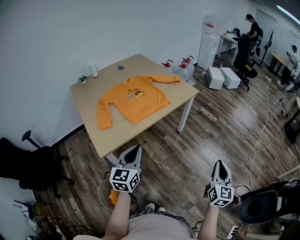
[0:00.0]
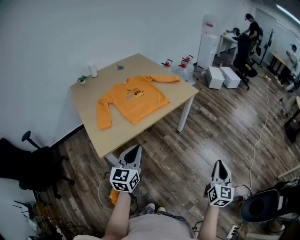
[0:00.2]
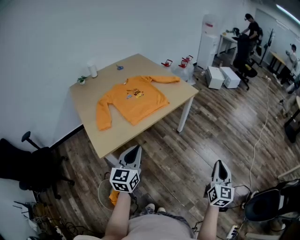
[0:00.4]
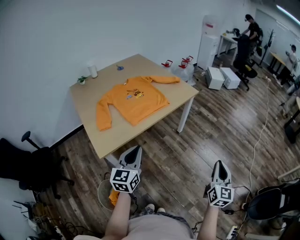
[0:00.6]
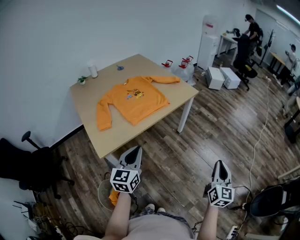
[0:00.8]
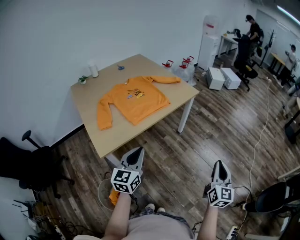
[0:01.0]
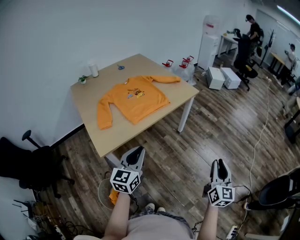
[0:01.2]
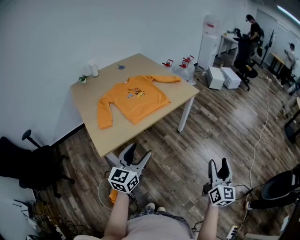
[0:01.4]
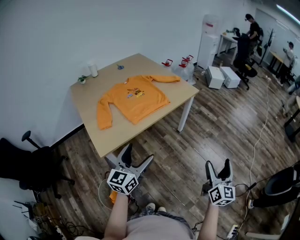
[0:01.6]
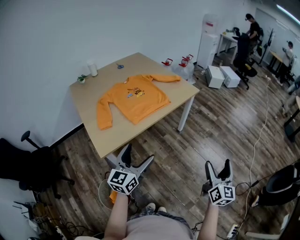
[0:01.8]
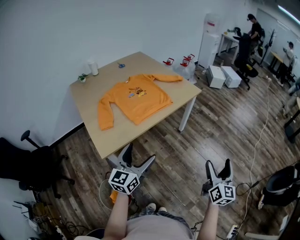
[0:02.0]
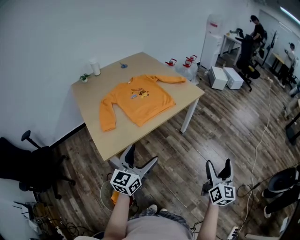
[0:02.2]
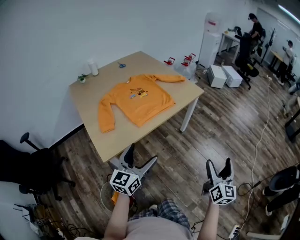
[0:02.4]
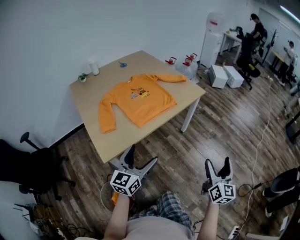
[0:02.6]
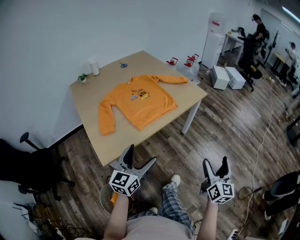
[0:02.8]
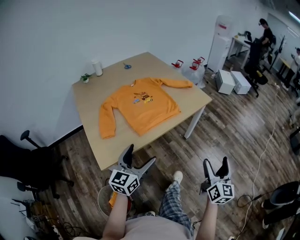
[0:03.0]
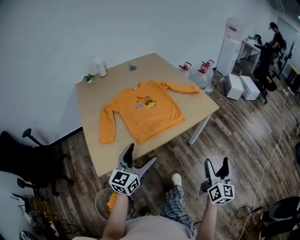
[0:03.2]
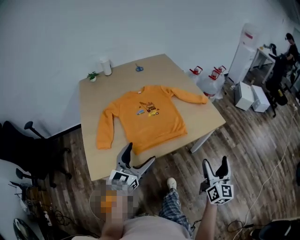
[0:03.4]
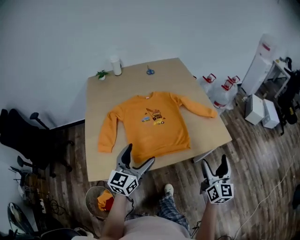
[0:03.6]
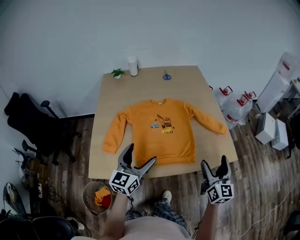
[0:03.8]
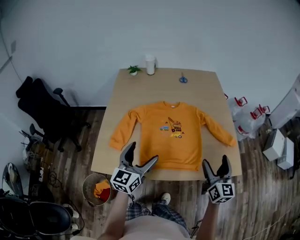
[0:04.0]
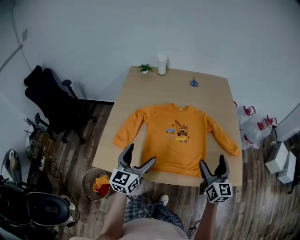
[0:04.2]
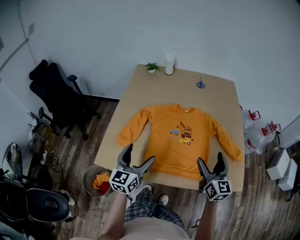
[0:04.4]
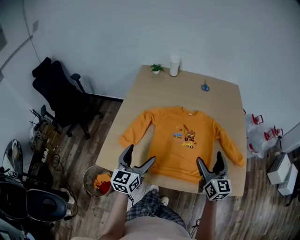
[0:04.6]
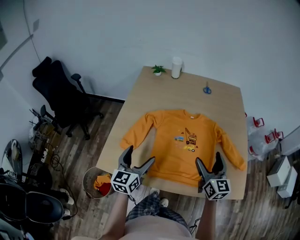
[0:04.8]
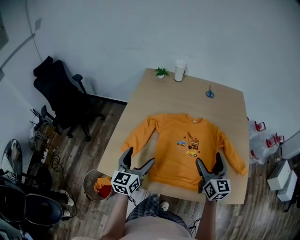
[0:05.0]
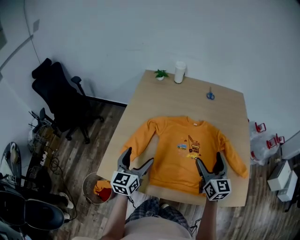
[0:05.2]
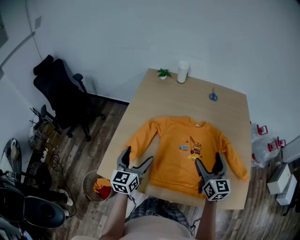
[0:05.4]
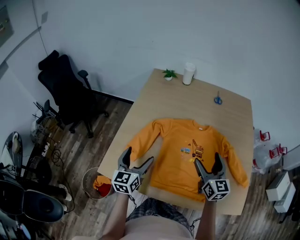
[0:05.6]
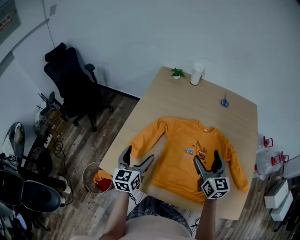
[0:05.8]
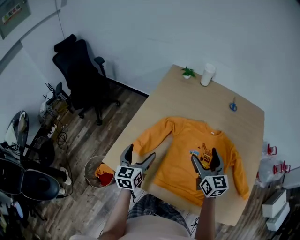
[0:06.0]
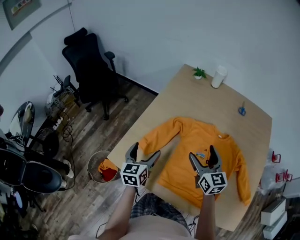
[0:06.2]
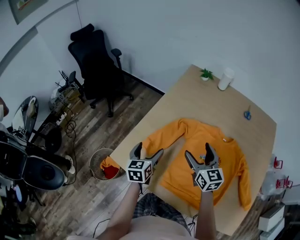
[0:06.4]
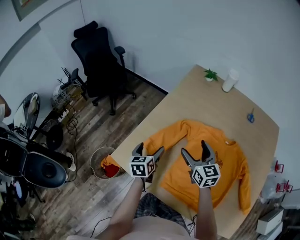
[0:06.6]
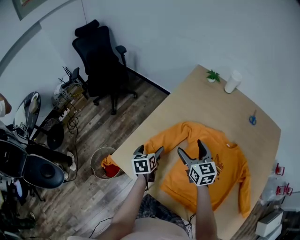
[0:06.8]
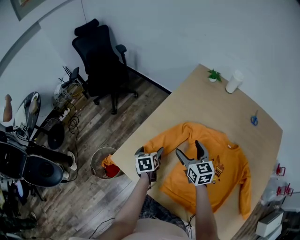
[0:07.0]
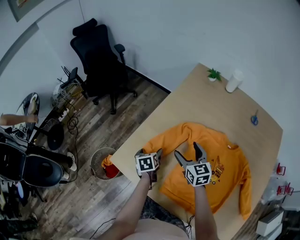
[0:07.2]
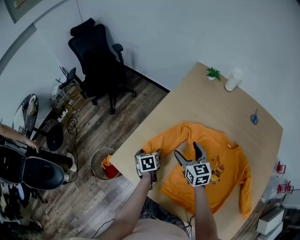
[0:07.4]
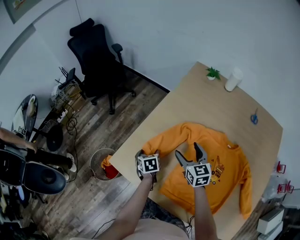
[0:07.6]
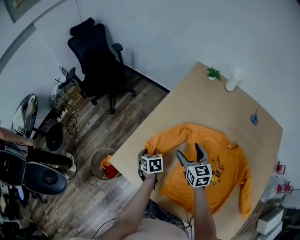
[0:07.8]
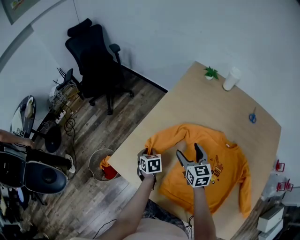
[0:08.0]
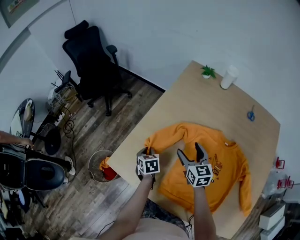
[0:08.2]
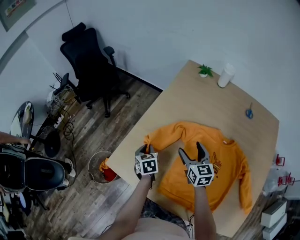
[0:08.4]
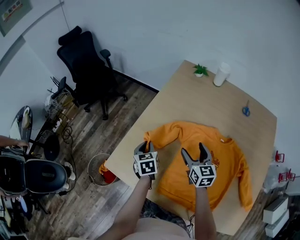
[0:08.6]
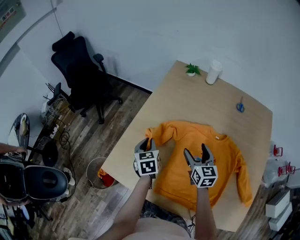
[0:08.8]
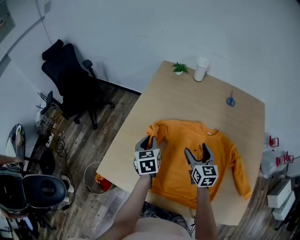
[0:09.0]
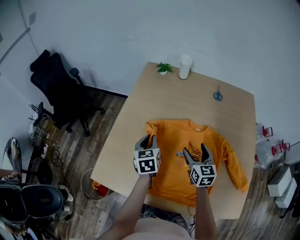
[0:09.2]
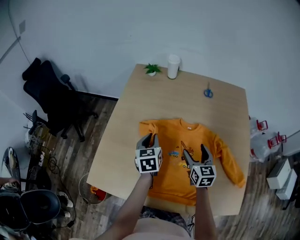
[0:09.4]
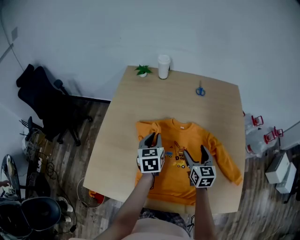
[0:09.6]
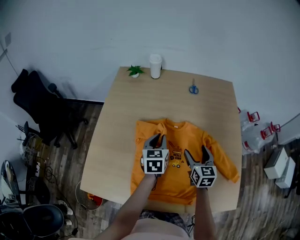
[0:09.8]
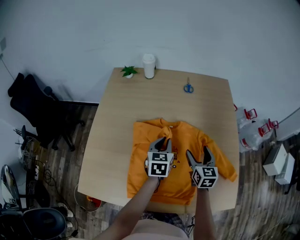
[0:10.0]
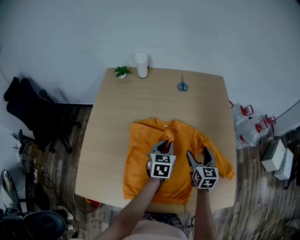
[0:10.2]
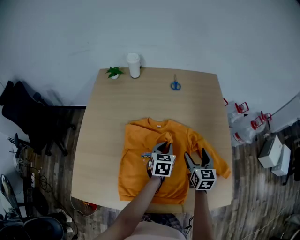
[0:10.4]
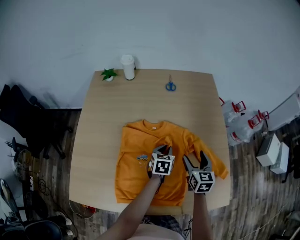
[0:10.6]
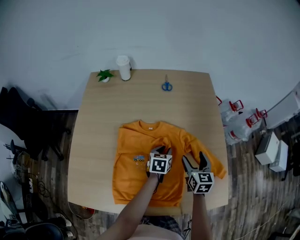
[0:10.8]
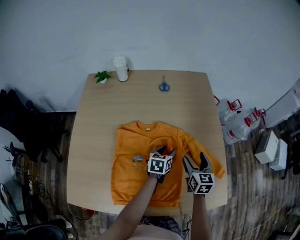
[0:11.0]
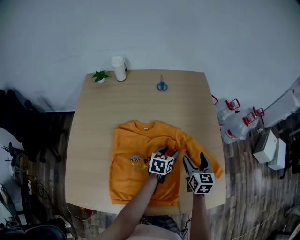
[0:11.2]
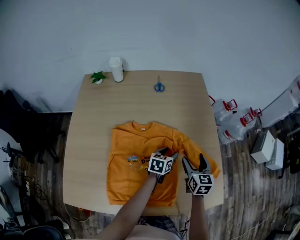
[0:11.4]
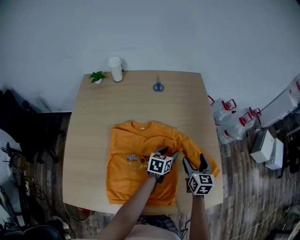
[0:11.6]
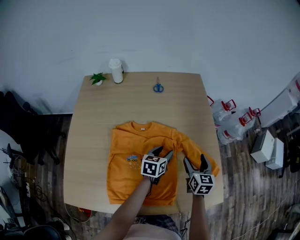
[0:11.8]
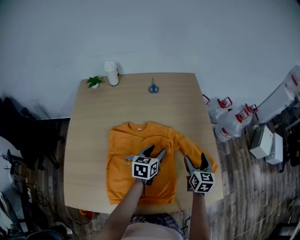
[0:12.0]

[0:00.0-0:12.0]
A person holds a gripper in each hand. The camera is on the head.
0:00.0 to 0:01.6: The right gripper opens; the left gripper opens its fingers.
0:01.6 to 0:03.0: Both grippers move forward and to the left, approximately 15 cm.
0:03.0 to 0:04.4: The right gripper shifts by some 50 cm, and turns by approximately 60 degrees; the left gripper moves about 25 cm, and rotates some 50 degrees.
0:04.4 to 0:06.0: The left gripper travels to the left, forward and downward by roughly 15 cm, and swivels roughly 20 degrees; the right gripper moves forward and to the left, approximately 20 cm, and swivels roughly 20 degrees.
0:06.0 to 0:07.6: The right gripper moves forward, to the left and downward, some 20 cm, and changes its angle by approximately 20 degrees. Meanwhile the left gripper heads downward, covering about 20 cm, and angles its fingers downward, by some 40 degrees.
0:07.6 to 0:09.0: The right gripper travels to the right and backward by roughly 15 cm, and rotates about 20 degrees; the left gripper heads upward and to the right, covering some 20 cm, changes its angle by roughly 30 degrees, and closes.
0:09.0 to 0:10.4: The right gripper changes place by about 25 cm, and rotates roughly 30 degrees. The left gripper changes place by roughly 35 cm, and swivels some 40 degrees.
0:10.4 to 0:12.0: The right gripper travels to the right by about 10 cm, while the left gripper shifts some 5 cm to the right, and opens.

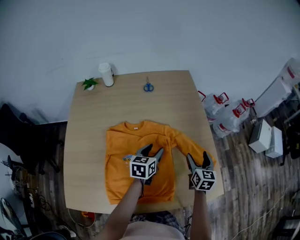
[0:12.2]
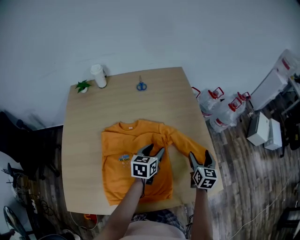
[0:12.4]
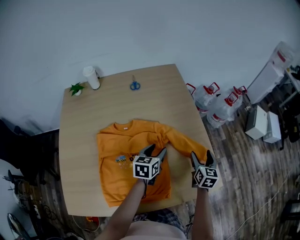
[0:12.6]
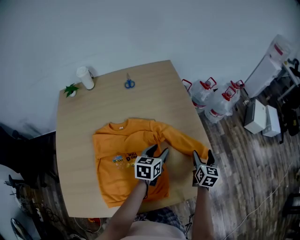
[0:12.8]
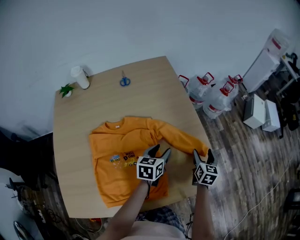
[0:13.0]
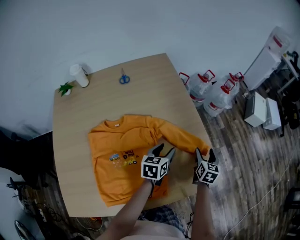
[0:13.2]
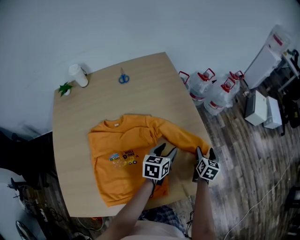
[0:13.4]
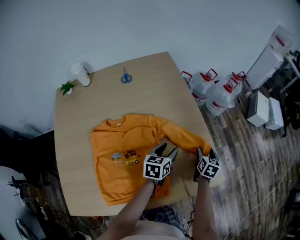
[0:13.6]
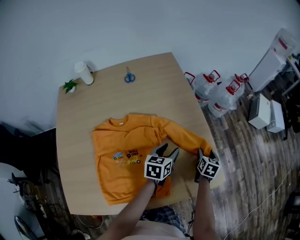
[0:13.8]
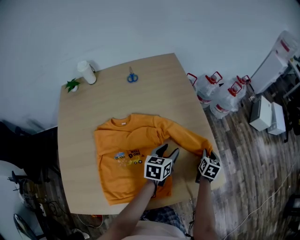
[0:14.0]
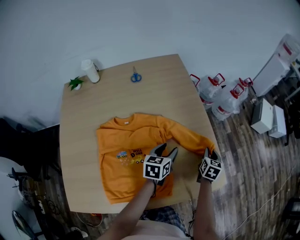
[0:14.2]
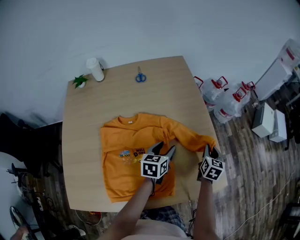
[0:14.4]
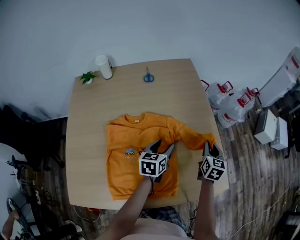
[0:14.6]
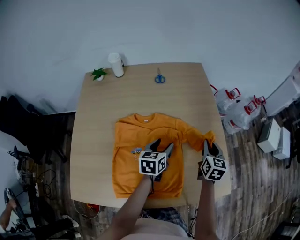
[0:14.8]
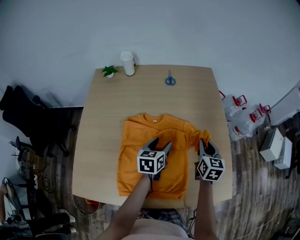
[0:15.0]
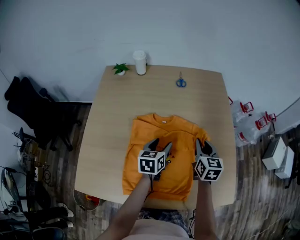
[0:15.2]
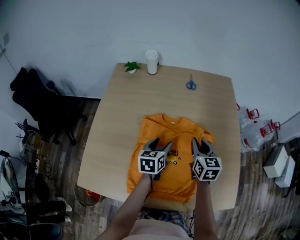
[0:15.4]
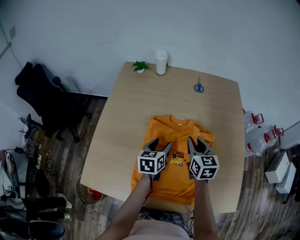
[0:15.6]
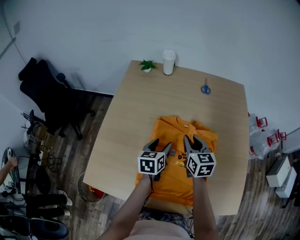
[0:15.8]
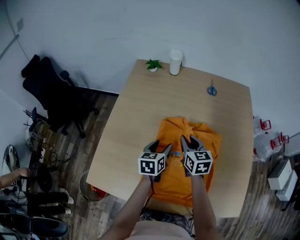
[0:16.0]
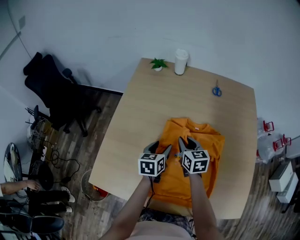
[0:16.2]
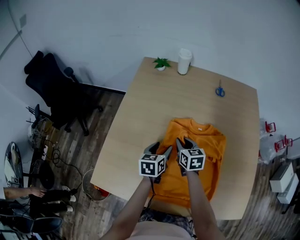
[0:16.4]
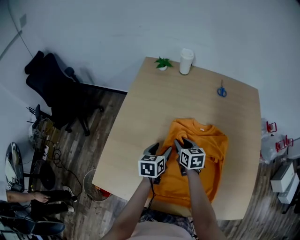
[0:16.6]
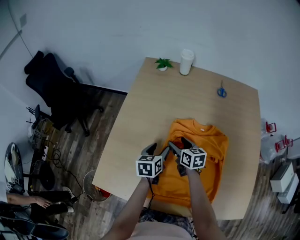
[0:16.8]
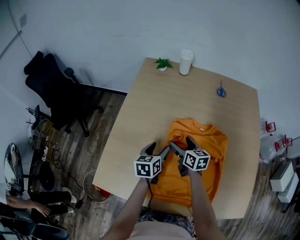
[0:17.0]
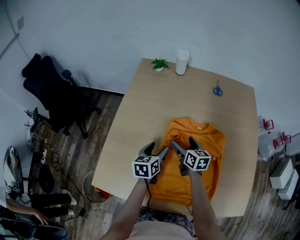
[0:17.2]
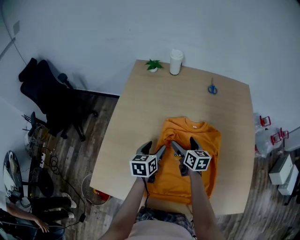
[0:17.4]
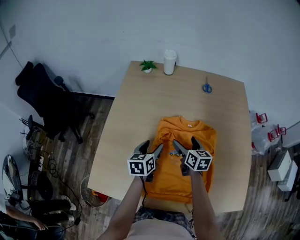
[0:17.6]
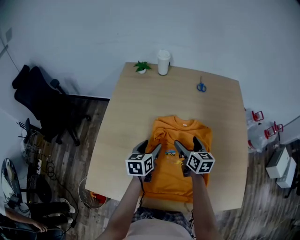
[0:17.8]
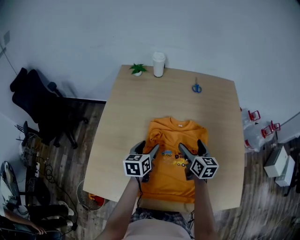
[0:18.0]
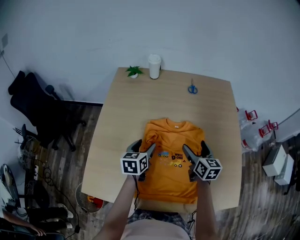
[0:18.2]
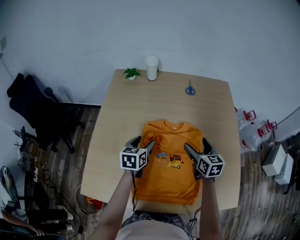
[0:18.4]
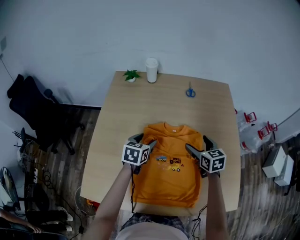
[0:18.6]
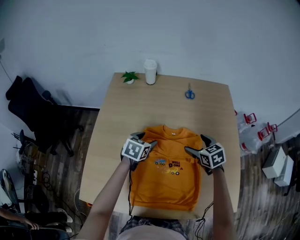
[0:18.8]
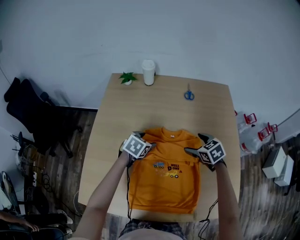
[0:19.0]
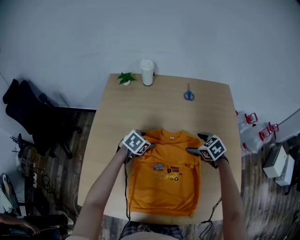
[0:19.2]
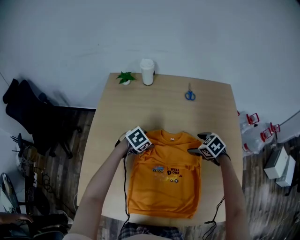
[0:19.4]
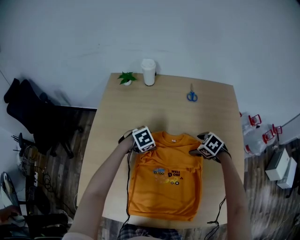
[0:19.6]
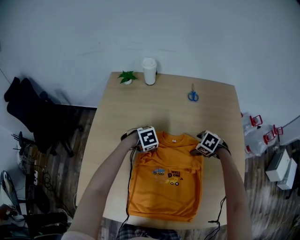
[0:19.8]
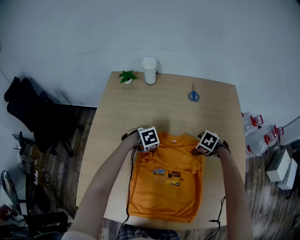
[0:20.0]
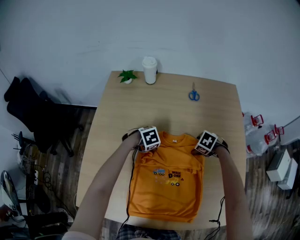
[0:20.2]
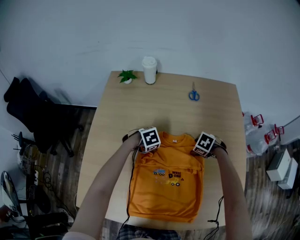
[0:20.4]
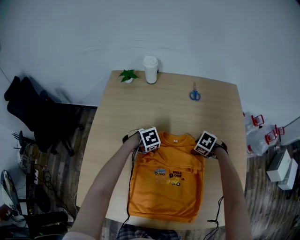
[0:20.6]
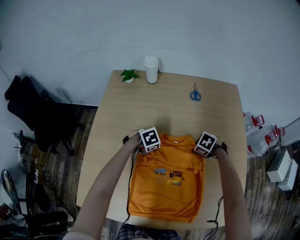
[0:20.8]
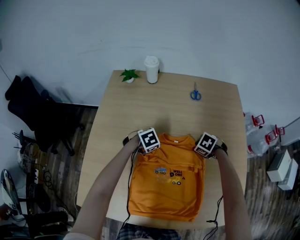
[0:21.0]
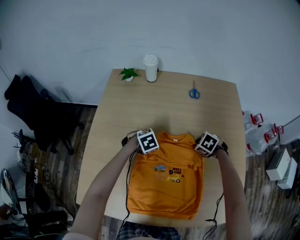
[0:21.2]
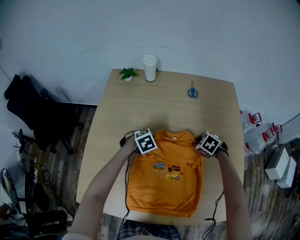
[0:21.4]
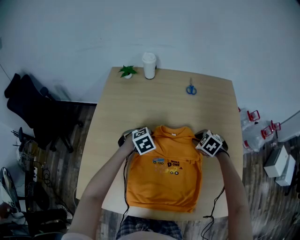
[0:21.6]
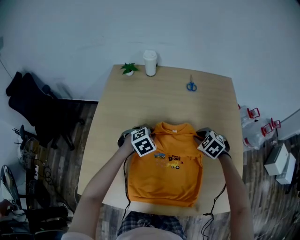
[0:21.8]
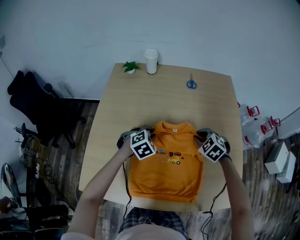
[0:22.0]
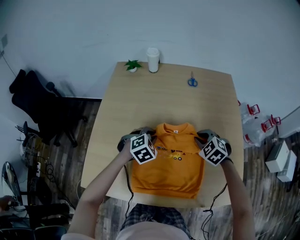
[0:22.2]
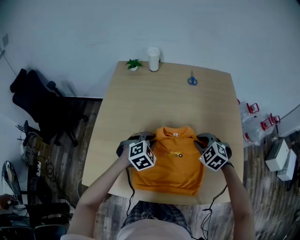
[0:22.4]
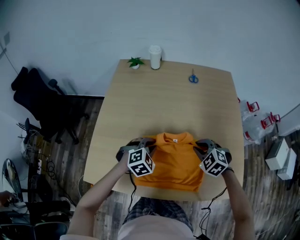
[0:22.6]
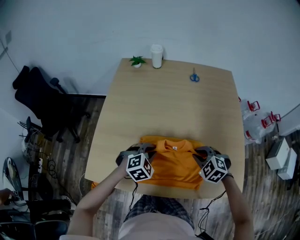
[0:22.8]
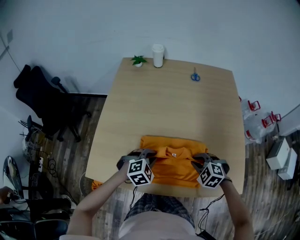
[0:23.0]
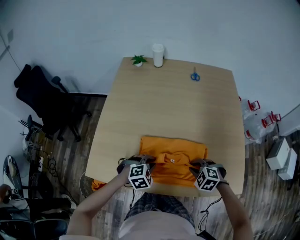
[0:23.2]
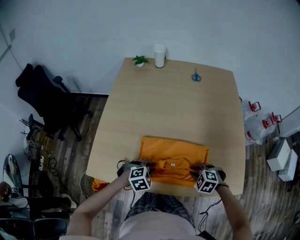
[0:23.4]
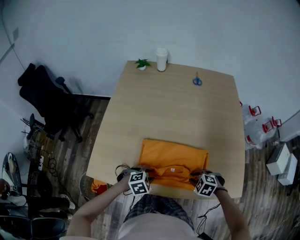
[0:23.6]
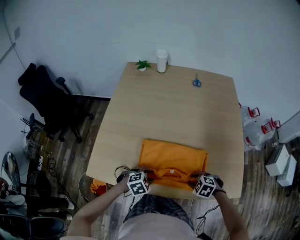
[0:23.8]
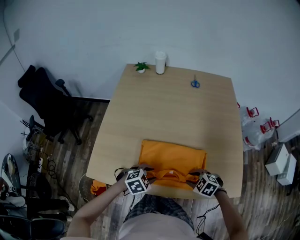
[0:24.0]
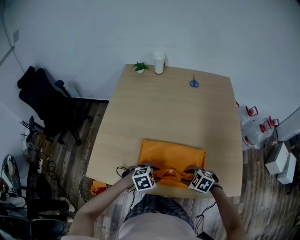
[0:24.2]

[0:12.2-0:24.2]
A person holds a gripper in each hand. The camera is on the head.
0:12.2 to 0:13.8: The right gripper moves to the right and downward, about 20 cm, and swivels approximately 30 degrees. Meanwhile the left gripper travels to the right by about 15 cm.
0:13.8 to 0:15.2: The right gripper shifts by approximately 35 cm, rotates about 40 degrees, and closes its fingers; the left gripper shifts by about 25 cm, and swivels approximately 30 degrees.
0:15.2 to 0:16.6: Both grippers travel together to the left, about 25 cm. The right gripper rotates some 30 degrees.
0:16.6 to 0:18.2: The left gripper moves roughly 5 cm; the right gripper travels to the right and upward by about 20 cm, changes its angle by about 20 degrees, and opens.
0:18.2 to 0:19.8: The right gripper travels downward by approximately 15 cm, and tips its fingers downward by about 50 degrees, while the left gripper ends up approximately 20 cm from where it was, and angles its fingers downward, by about 40 degrees.
0:19.8 to 0:21.2: The left gripper closes up; the right gripper closes up.
0:21.2 to 0:22.6: The left gripper shifts by some 20 cm, and changes its angle by about 30 degrees. The right gripper shifts by approximately 20 cm, and turns by roughly 30 degrees.
0:22.6 to 0:24.2: The right gripper moves approximately 20 cm, and turns by about 30 degrees, while the left gripper shifts by roughly 20 cm, and turns by roughly 30 degrees.
